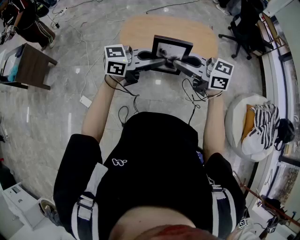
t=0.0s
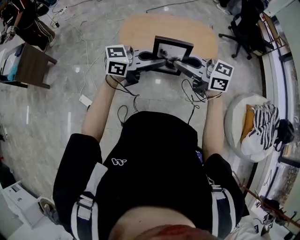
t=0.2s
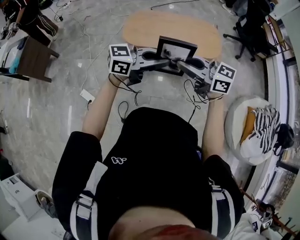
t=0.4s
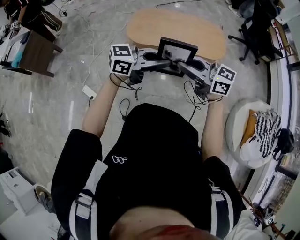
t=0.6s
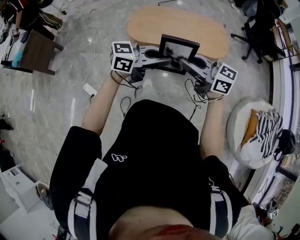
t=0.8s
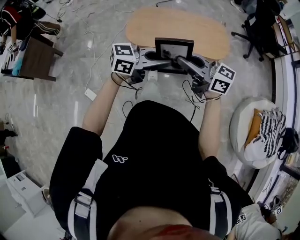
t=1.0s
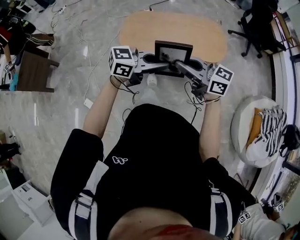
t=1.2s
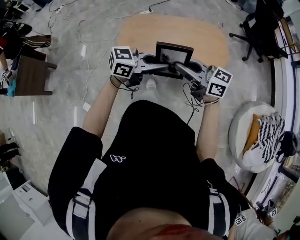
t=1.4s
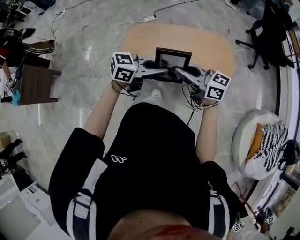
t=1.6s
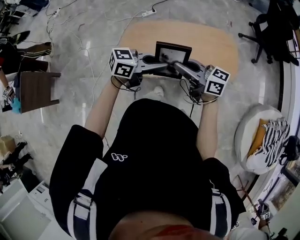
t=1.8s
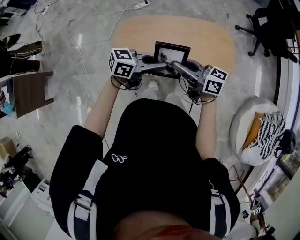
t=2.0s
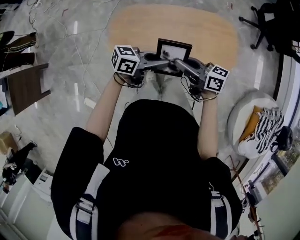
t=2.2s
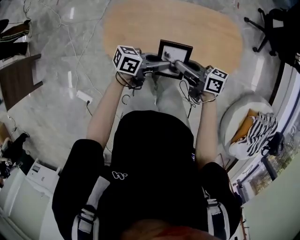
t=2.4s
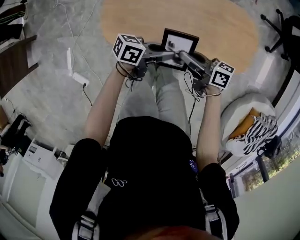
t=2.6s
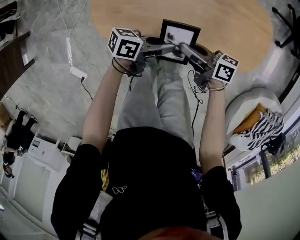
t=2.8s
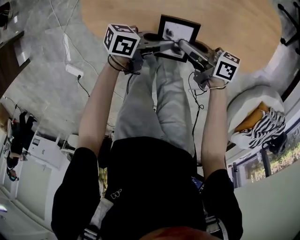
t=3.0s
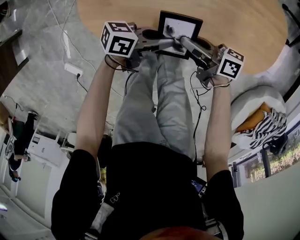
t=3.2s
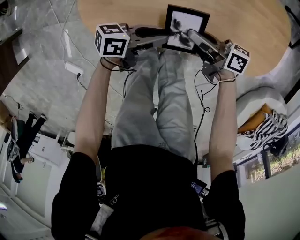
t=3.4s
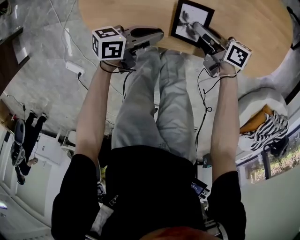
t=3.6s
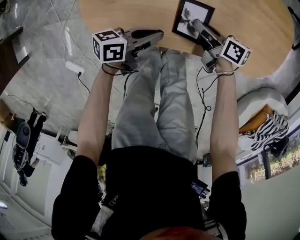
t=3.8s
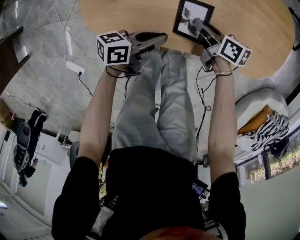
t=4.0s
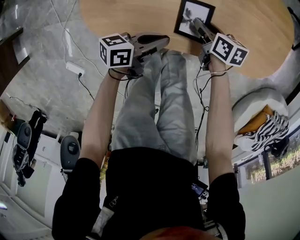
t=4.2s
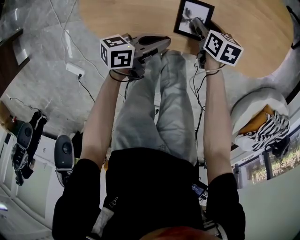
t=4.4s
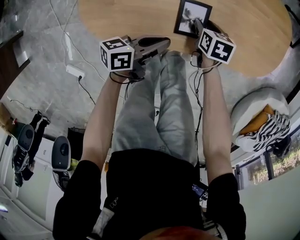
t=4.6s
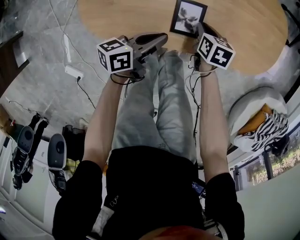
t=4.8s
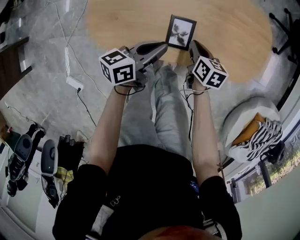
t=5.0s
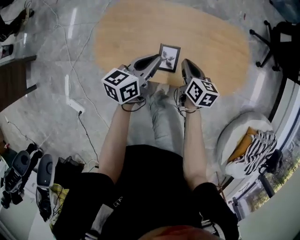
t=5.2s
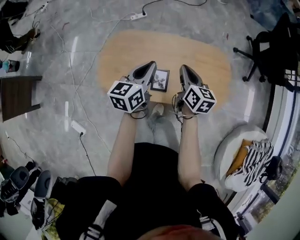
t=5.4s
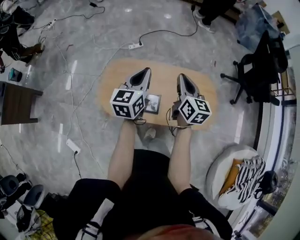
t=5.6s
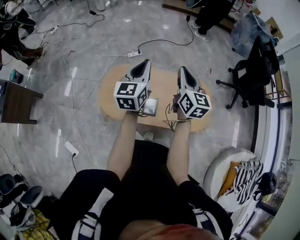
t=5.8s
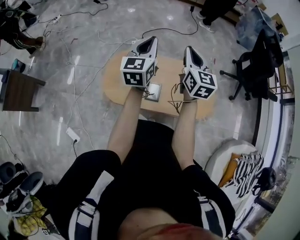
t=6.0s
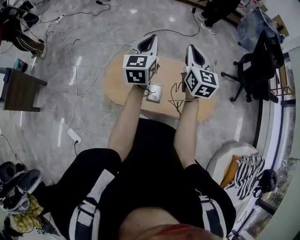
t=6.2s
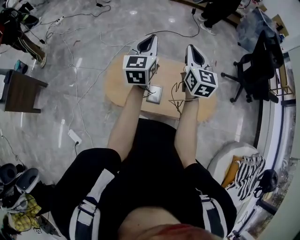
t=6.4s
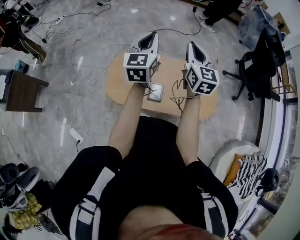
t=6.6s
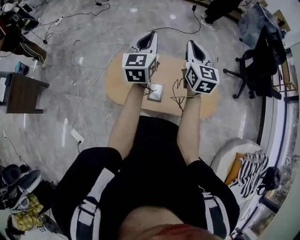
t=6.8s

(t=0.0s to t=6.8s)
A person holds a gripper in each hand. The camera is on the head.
t=0.0s - t=1.4s: The right gripper ends up approximately 25 cm from where it was; the left gripper moves some 25 cm.
t=1.4s - t=2.8s: The two grippers go about 35 cm downward. The left gripper rolls counterclockwise, seen from behind, by about 50 degrees; the right gripper rotates around the line of its fingers by about 50 degrees, clockwise from behind.
t=2.8s - t=4.0s: The left gripper is displaced downward by approximately 10 cm, while the right gripper travels downward by some 15 cm, and changes its angle by about 20 degrees.
t=4.0s - t=5.4s: Both grippers travel together upward, roughly 35 cm. The left gripper turns by about 50 degrees; the right gripper turns by some 40 degrees, and opens and closes again.
t=5.4s - t=6.8s: Both grippers travel together upward, about 25 cm. The right gripper changes its angle by roughly 30 degrees. The left gripper changes its angle by approximately 30 degrees.

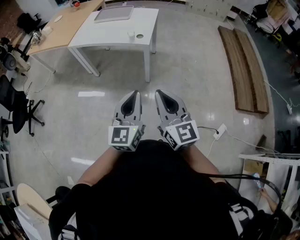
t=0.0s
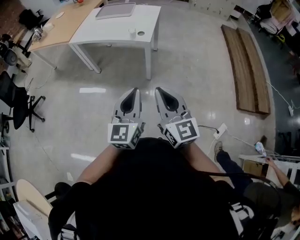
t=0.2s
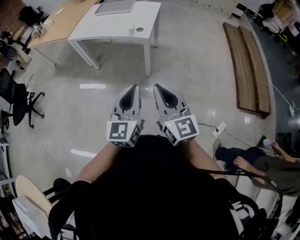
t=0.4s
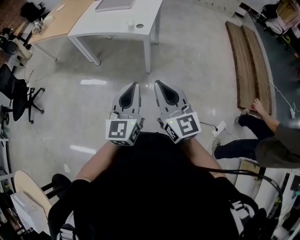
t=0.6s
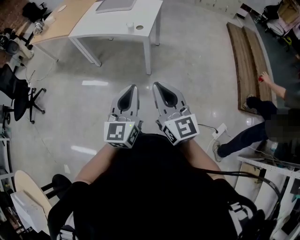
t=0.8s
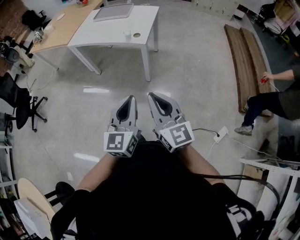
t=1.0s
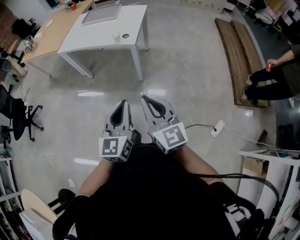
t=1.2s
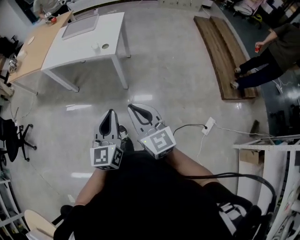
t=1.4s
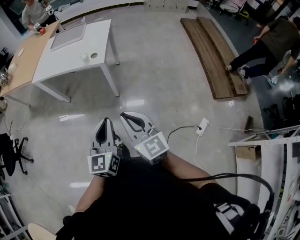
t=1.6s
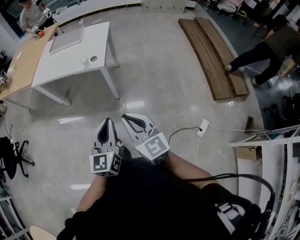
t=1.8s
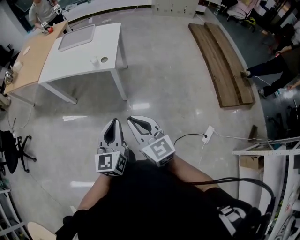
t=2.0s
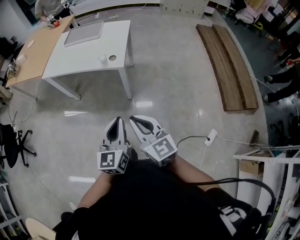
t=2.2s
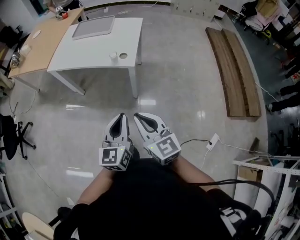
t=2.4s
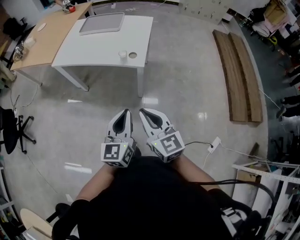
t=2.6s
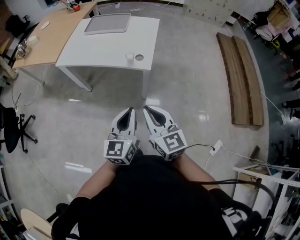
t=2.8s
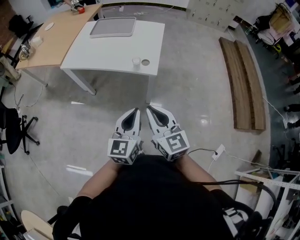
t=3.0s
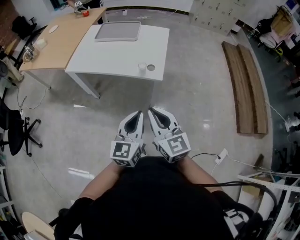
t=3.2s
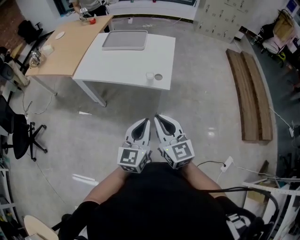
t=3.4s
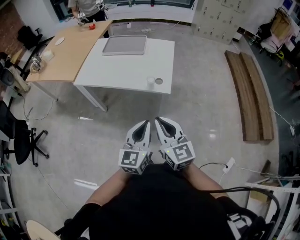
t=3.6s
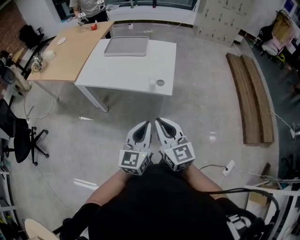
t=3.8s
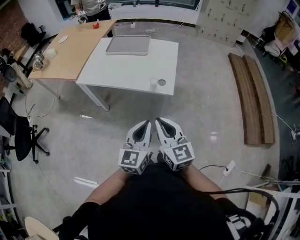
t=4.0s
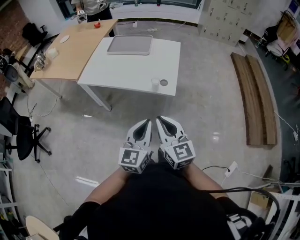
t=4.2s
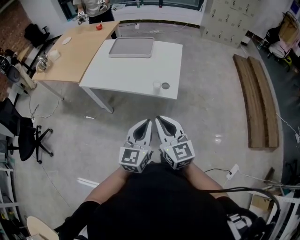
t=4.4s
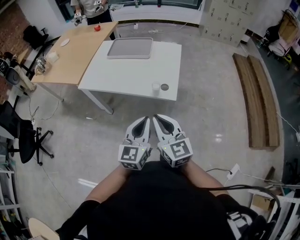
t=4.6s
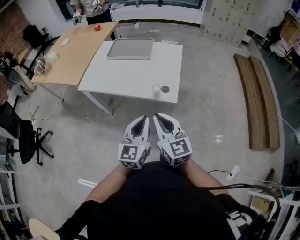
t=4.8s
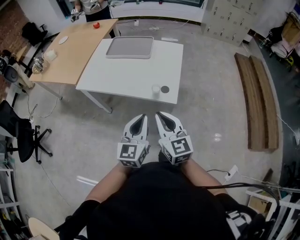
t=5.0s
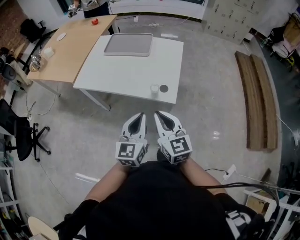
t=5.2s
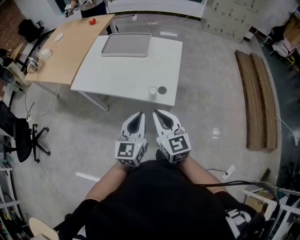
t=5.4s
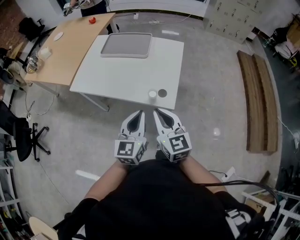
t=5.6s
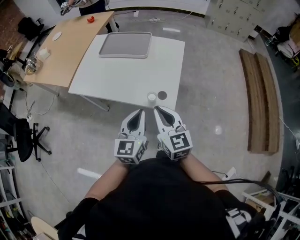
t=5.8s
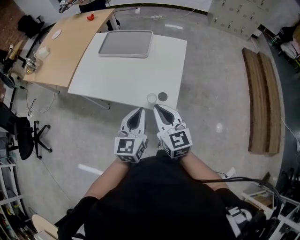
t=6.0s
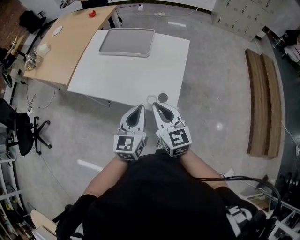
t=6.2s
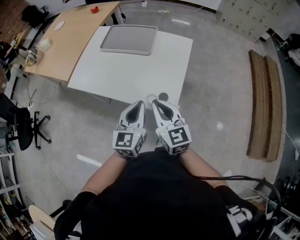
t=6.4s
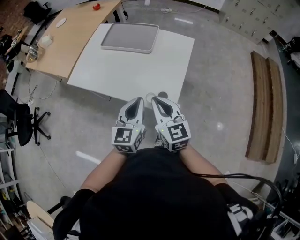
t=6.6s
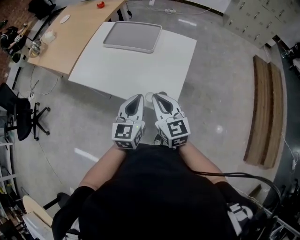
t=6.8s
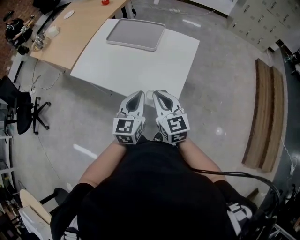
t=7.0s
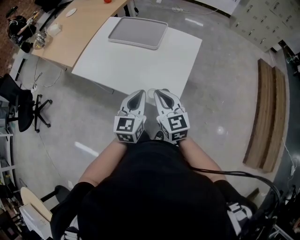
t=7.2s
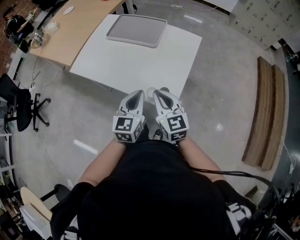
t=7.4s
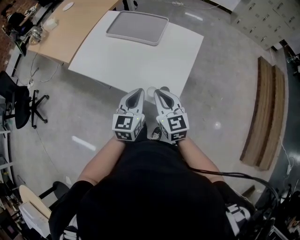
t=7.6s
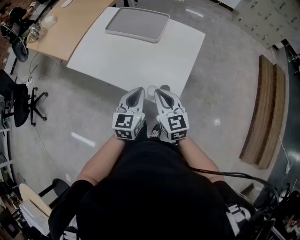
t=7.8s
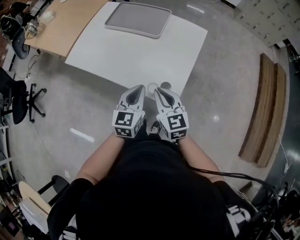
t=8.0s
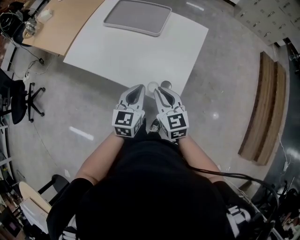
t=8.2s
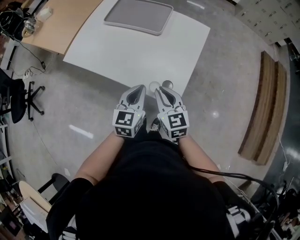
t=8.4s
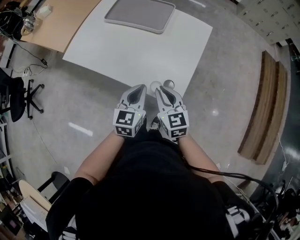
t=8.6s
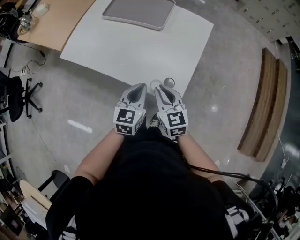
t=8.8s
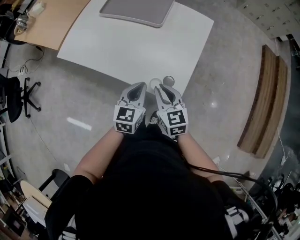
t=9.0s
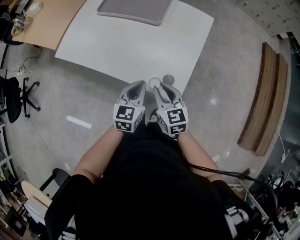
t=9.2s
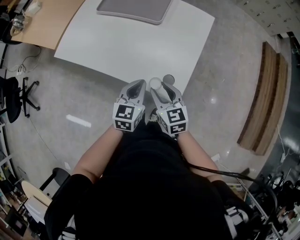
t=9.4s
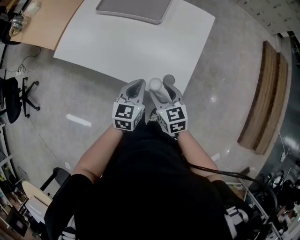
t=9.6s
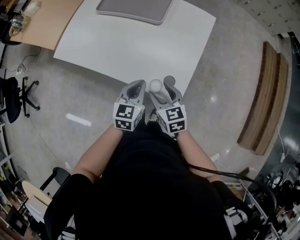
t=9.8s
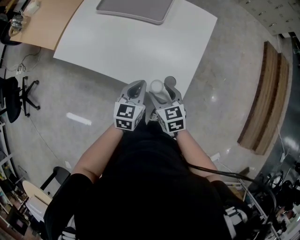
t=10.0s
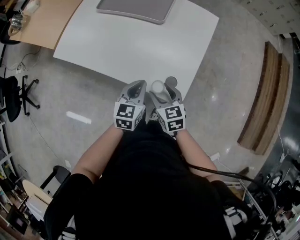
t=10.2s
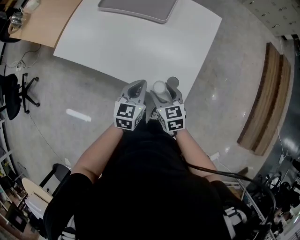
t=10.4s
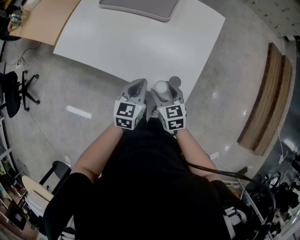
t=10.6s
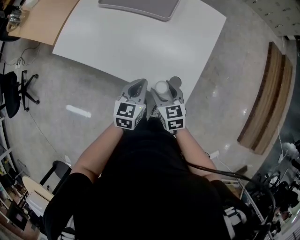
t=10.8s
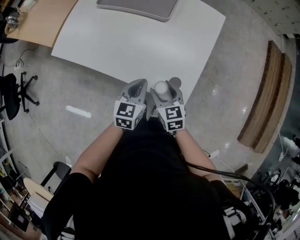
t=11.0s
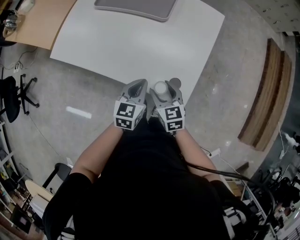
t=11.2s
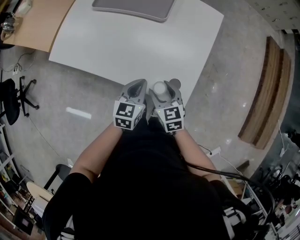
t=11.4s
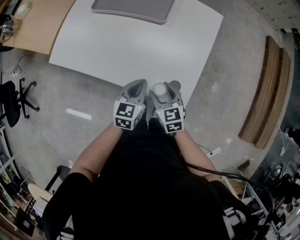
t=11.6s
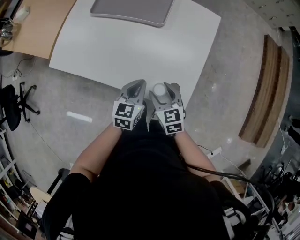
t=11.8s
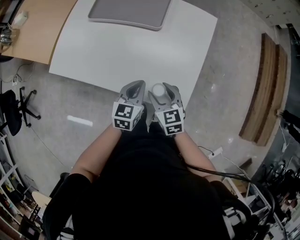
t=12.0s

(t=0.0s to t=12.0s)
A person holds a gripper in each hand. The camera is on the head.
t=0.0s - t=1.6s: The left gripper is displaced to the right by approximately 10 cm. Meanwhile the right gripper goes roughly 10 cm to the right and downward.
t=1.6s - t=3.0s: Both grippers move forward and to the left, about 30 cm.
t=3.0s - t=4.4s: The right gripper is displaced forward and to the left by roughly 10 cm, while the left gripper shifts approximately 5 cm forward.
t=4.4s - t=6.0s: The two grippers go roughly 25 cm forward.
t=6.0s - t=7.6s: The grippers both shift forward and downward by some 10 cm.
t=7.6s - t=9.0s: Both grippers move downward, roughly 10 cm.
t=9.0s - t=10.4s: The left gripper shifts by about 5 cm. The right gripper heads downward, covering some 10 cm, and opens up.
t=10.4s - t=12.0s: Both grippers travel together forward, some 5 cm.

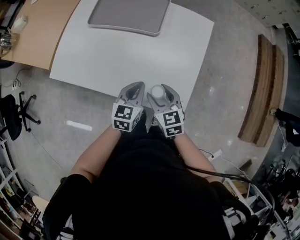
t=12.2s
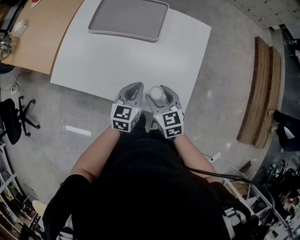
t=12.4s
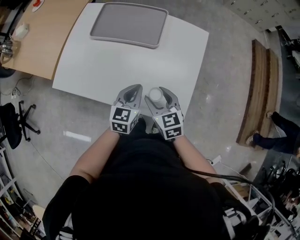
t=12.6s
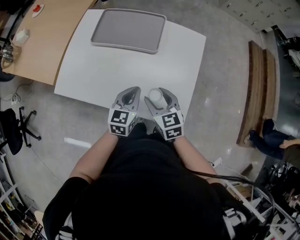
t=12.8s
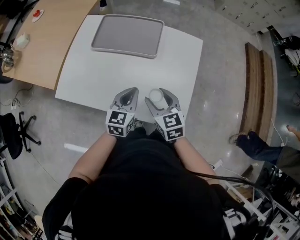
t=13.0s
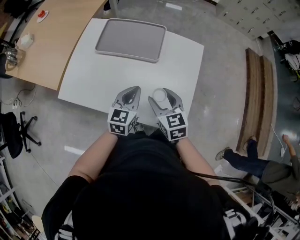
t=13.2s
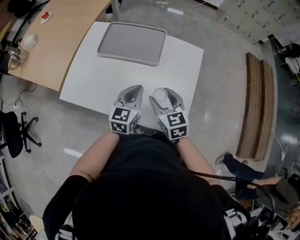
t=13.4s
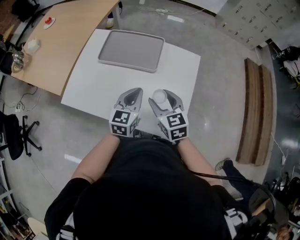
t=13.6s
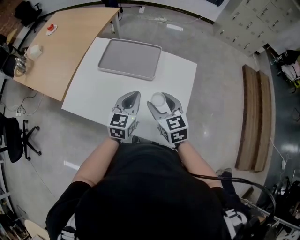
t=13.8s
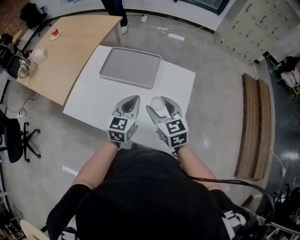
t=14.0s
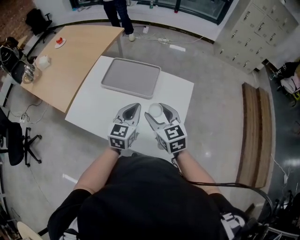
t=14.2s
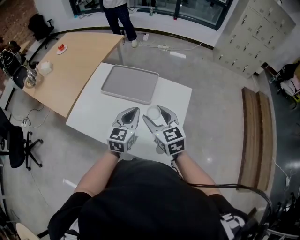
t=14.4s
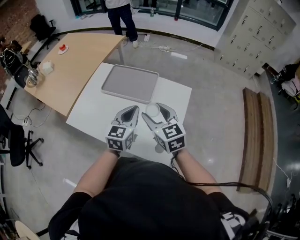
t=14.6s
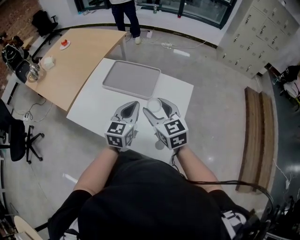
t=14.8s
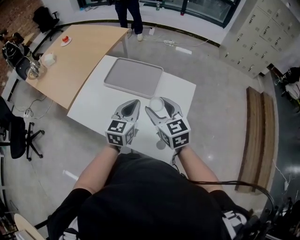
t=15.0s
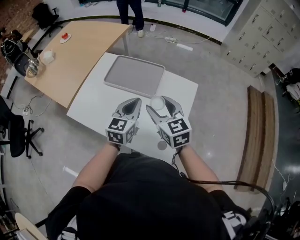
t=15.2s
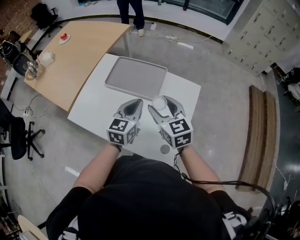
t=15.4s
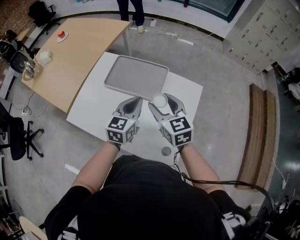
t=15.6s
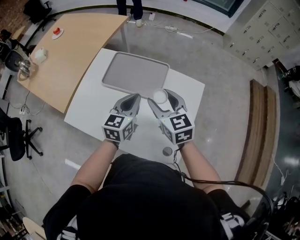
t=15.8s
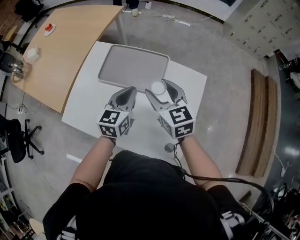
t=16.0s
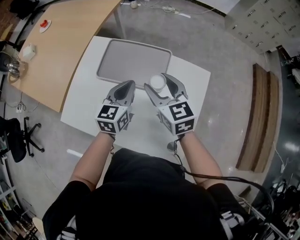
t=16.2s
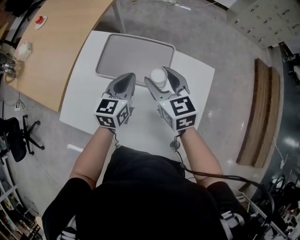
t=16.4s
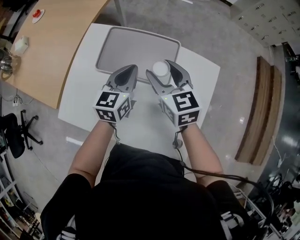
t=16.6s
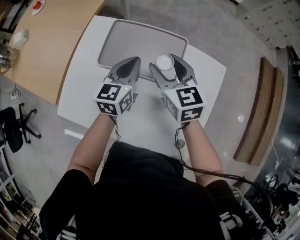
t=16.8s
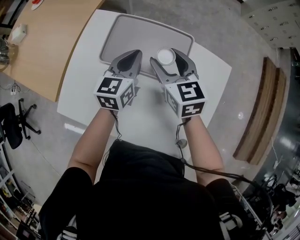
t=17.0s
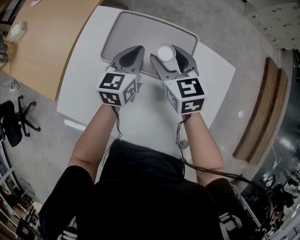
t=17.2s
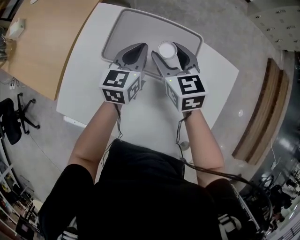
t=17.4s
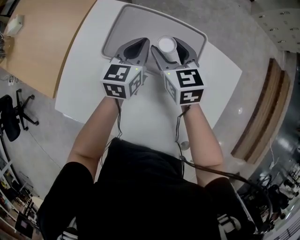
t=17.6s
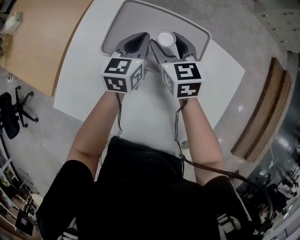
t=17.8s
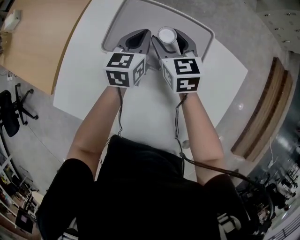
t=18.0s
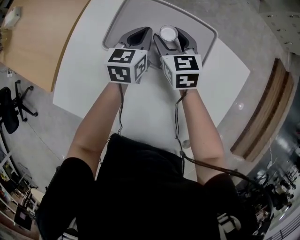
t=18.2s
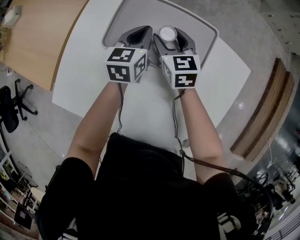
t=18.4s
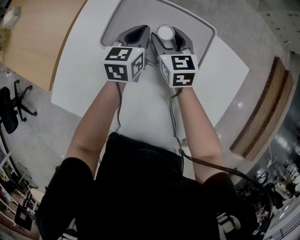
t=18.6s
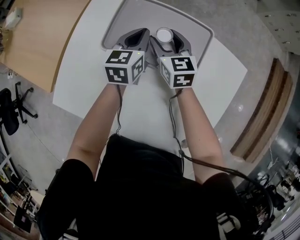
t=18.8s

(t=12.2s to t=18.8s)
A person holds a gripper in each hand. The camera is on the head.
t=12.2s - t=13.8s: The two grippers go roughly 20 cm upward and forward.
t=13.8s - t=15.4s: The left gripper heads upward, covering about 5 cm. The right gripper moves upward and forward, some 10 cm.
t=15.4s - t=17.2s: The grippers both shift forward and downward by roughly 30 cm.
t=17.2s - t=18.8s: The right gripper moves downward and forward, approximately 15 cm. Meanwhile the left gripper heads downward, covering roughly 10 cm.
